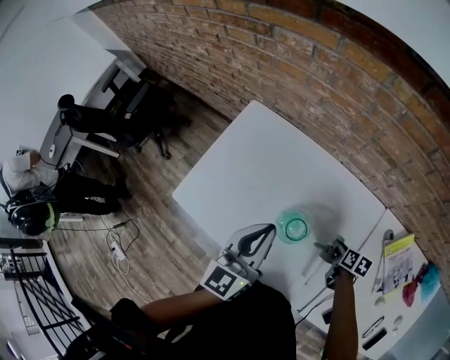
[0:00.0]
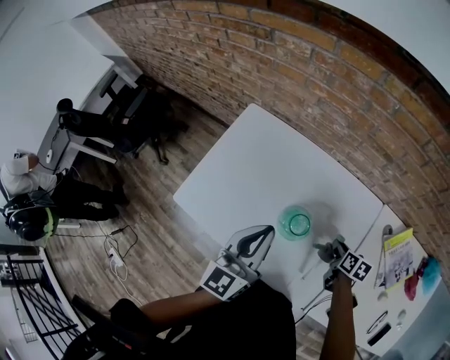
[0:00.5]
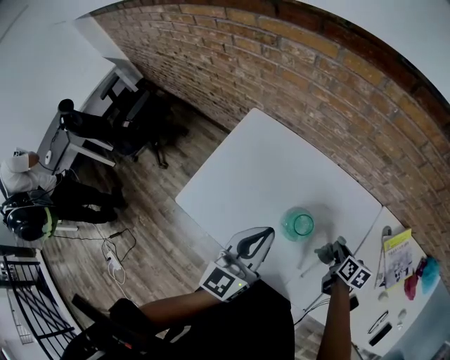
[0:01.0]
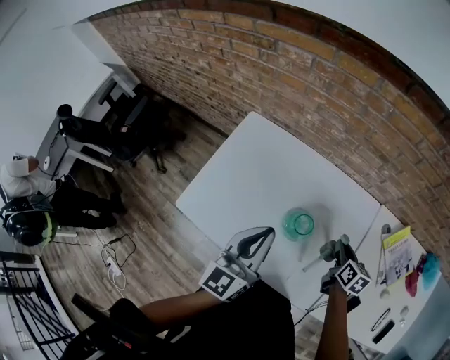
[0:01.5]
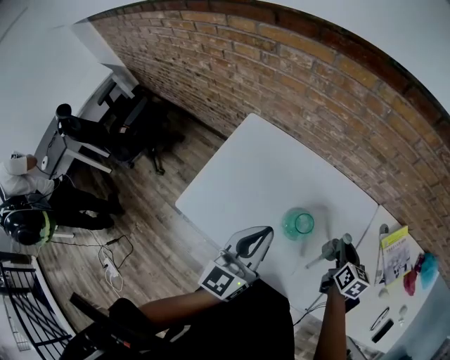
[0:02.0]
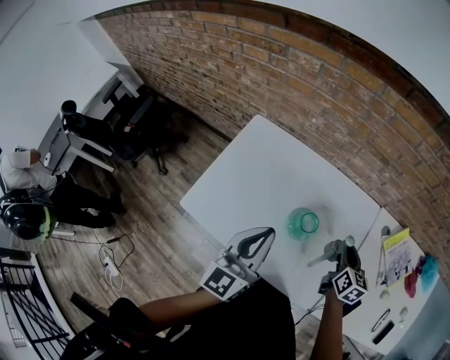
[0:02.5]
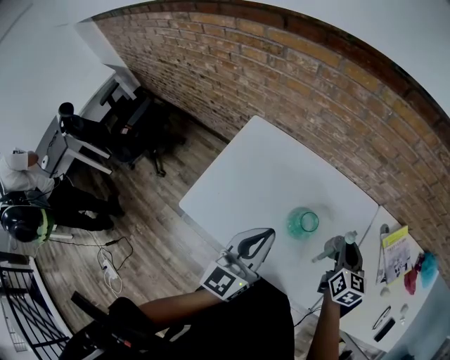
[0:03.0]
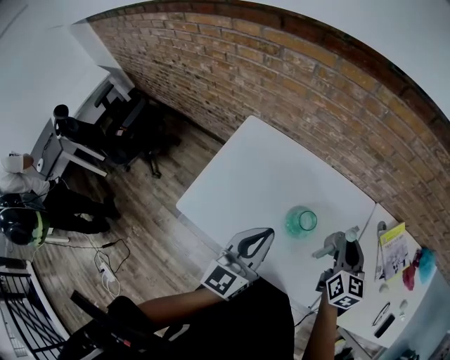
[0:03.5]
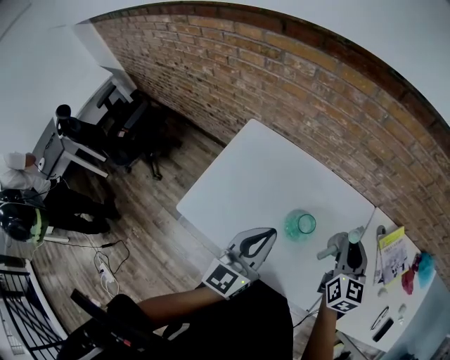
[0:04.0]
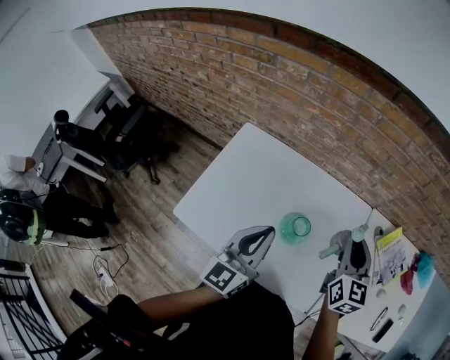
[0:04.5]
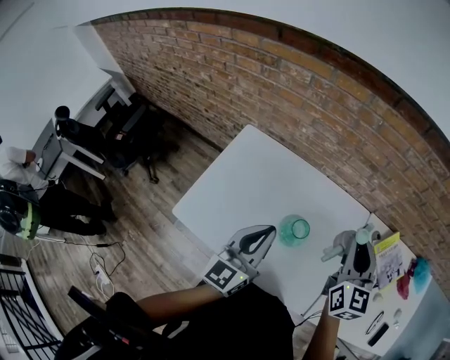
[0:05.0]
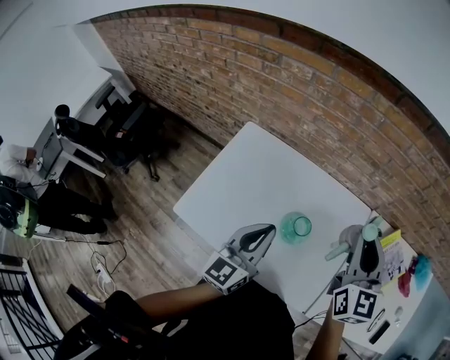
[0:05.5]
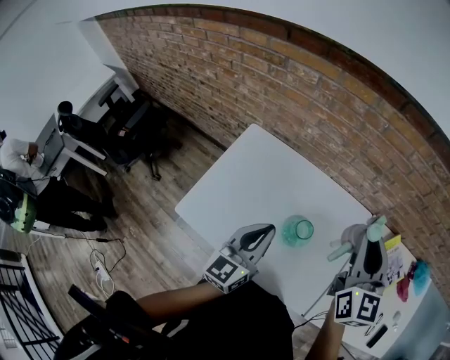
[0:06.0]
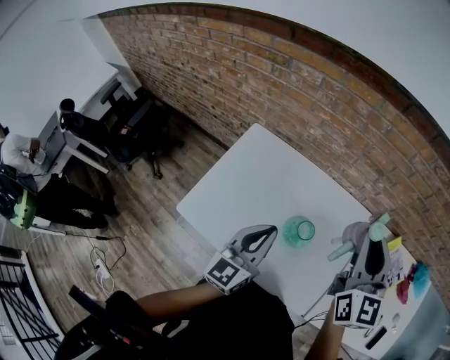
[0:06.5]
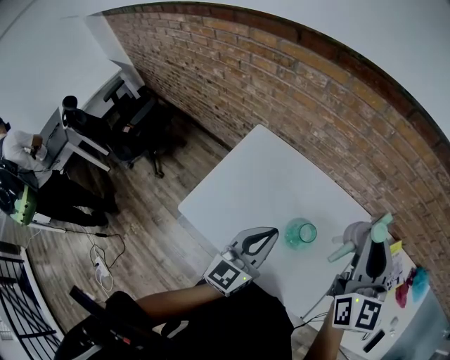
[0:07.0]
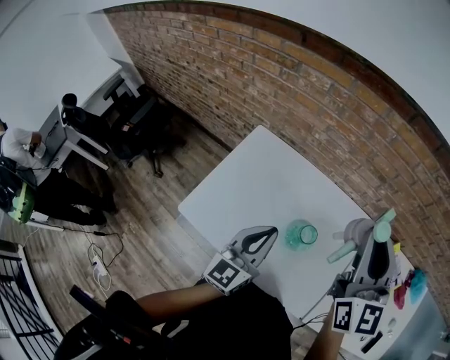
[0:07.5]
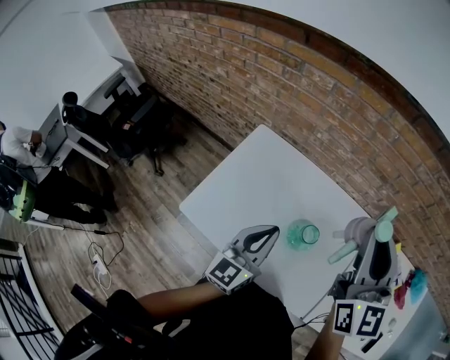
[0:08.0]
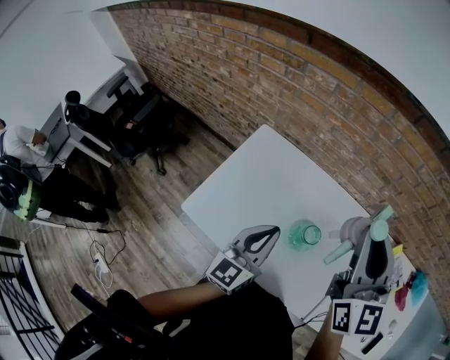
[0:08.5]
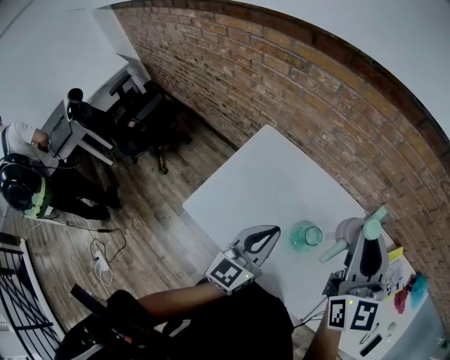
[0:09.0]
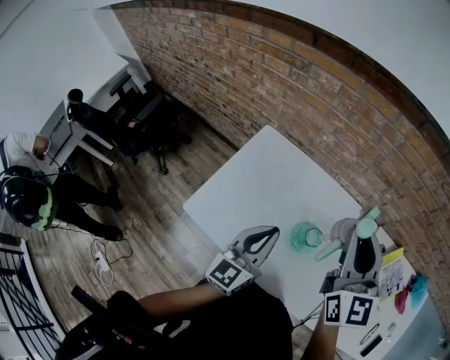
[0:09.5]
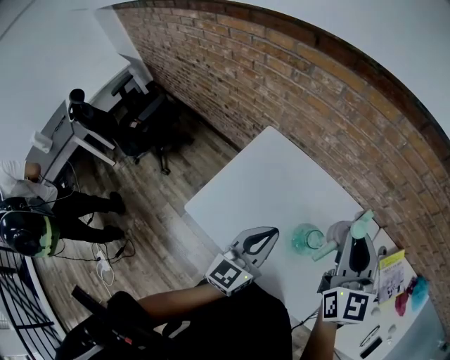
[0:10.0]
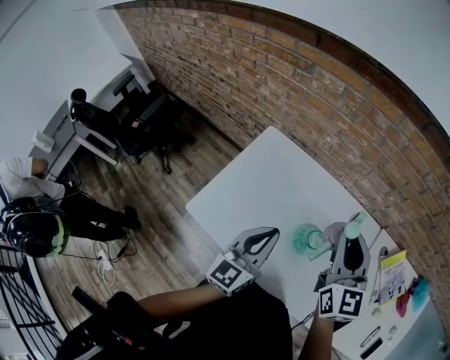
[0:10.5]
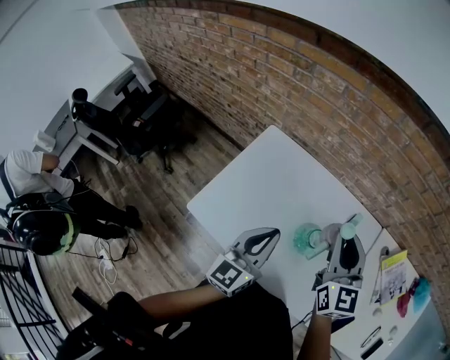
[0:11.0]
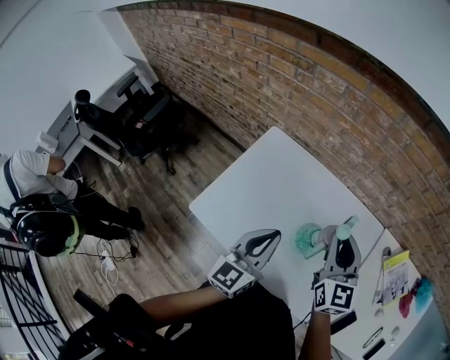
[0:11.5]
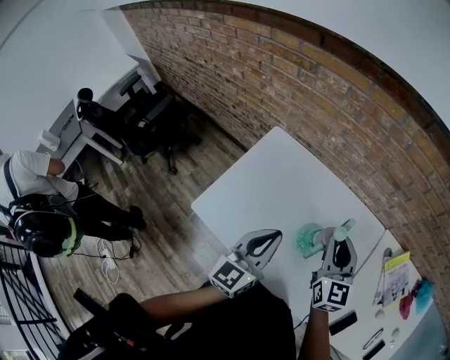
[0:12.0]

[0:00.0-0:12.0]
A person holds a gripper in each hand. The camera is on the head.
0:00.0 to 0:02.0: The right gripper heads upward, covering roughly 15 cm, and rotates about 30 degrees. The left gripper ends up about 5 cm from where it was.
0:02.0 to 0:04.0: The right gripper moves upward, some 15 cm, and changes its angle by roughly 30 degrees.
0:04.0 to 0:06.0: The right gripper heads upward, covering some 15 cm.
0:06.0 to 0:08.0: The right gripper heads upward and to the left, covering roughly 10 cm.
0:08.0 to 0:10.0: The right gripper moves downward, some 10 cm.
0:10.0 to 0:12.0: The right gripper is displaced downward by about 10 cm.

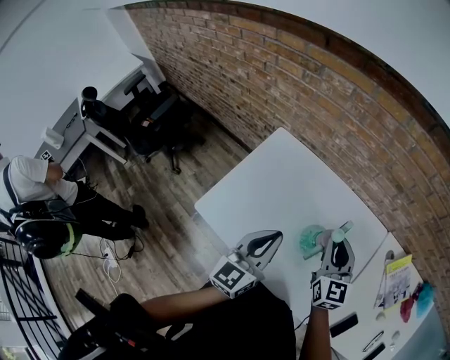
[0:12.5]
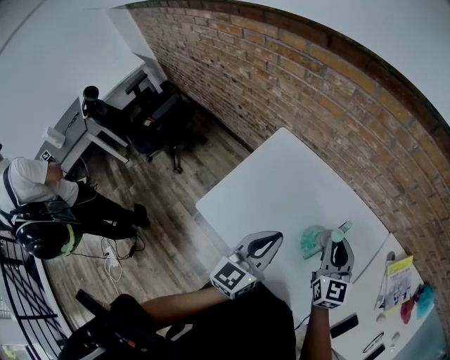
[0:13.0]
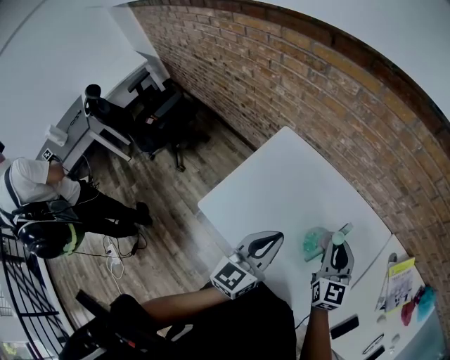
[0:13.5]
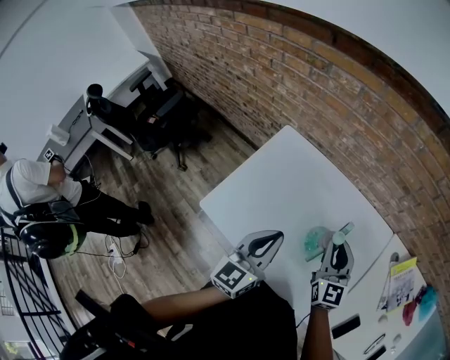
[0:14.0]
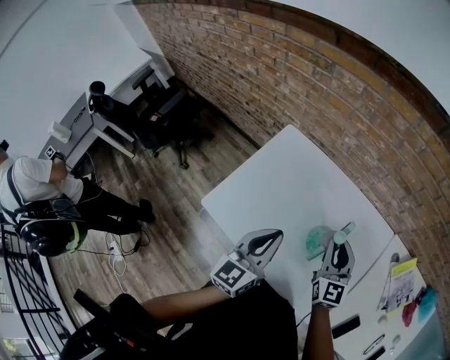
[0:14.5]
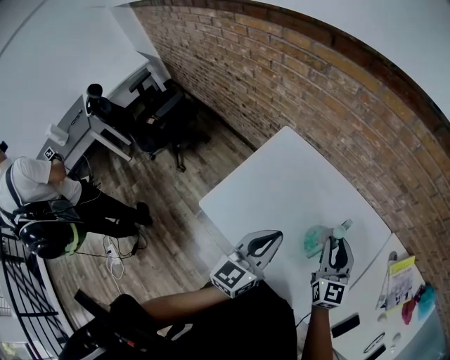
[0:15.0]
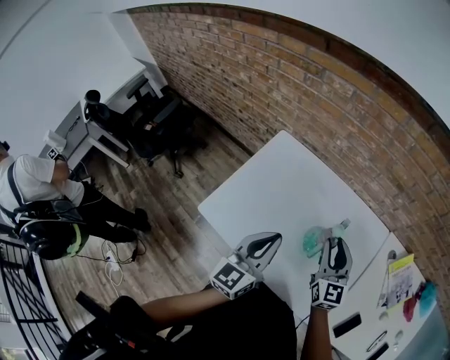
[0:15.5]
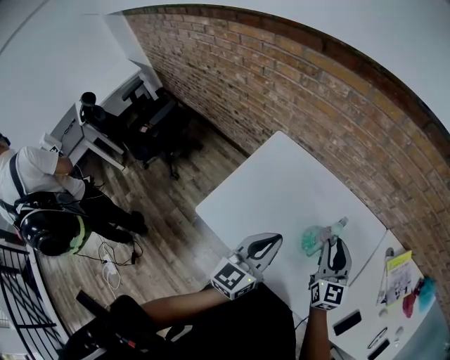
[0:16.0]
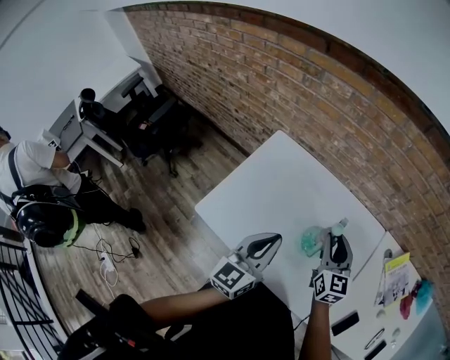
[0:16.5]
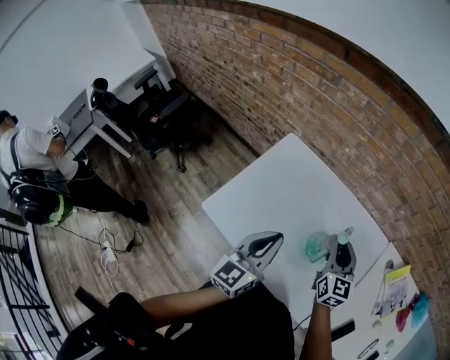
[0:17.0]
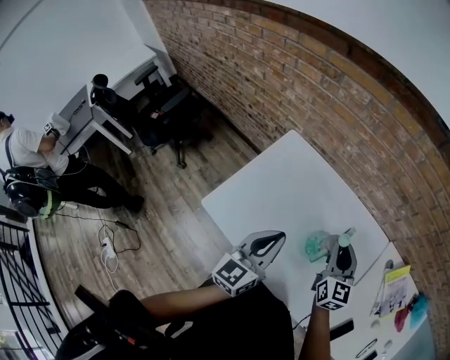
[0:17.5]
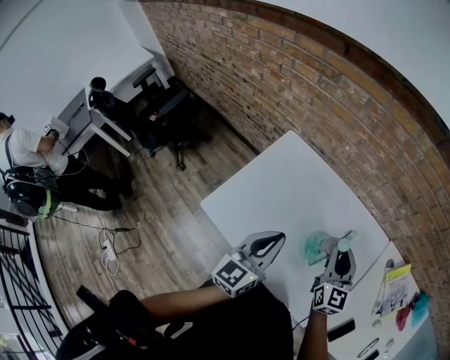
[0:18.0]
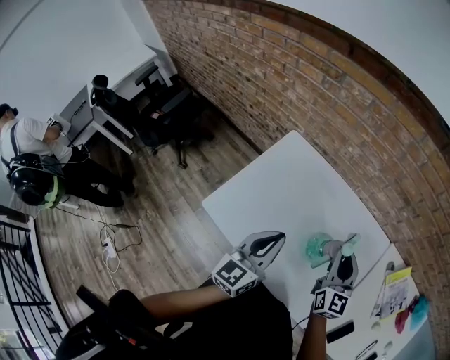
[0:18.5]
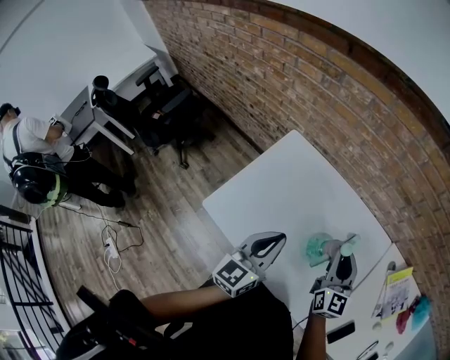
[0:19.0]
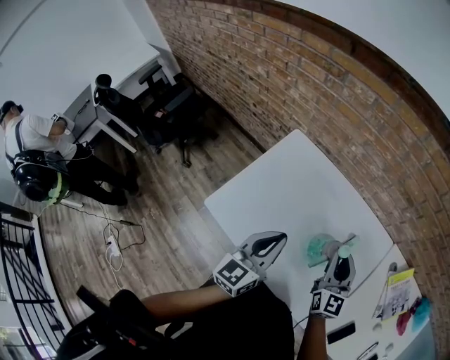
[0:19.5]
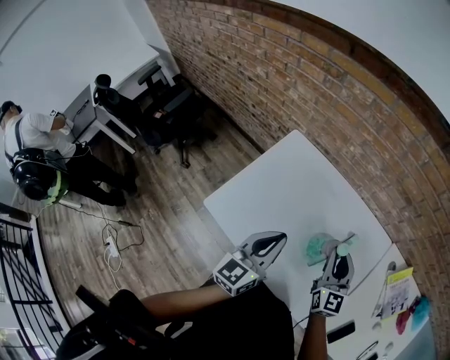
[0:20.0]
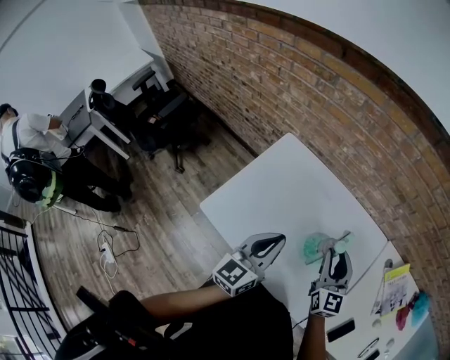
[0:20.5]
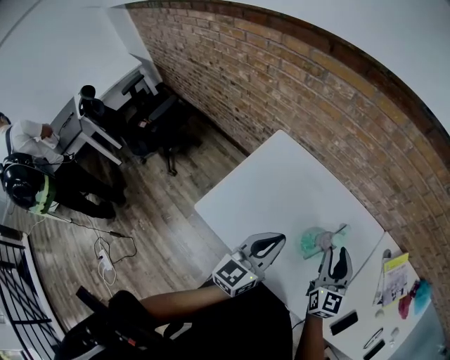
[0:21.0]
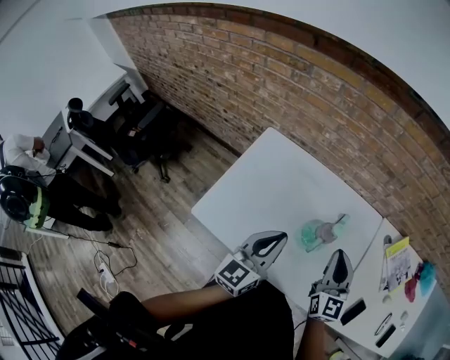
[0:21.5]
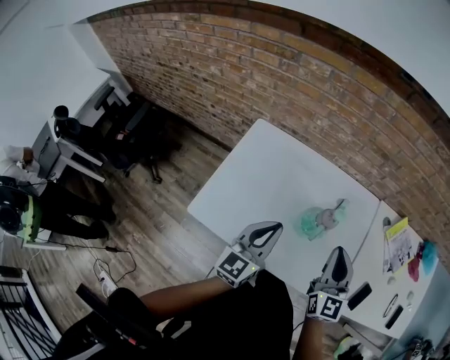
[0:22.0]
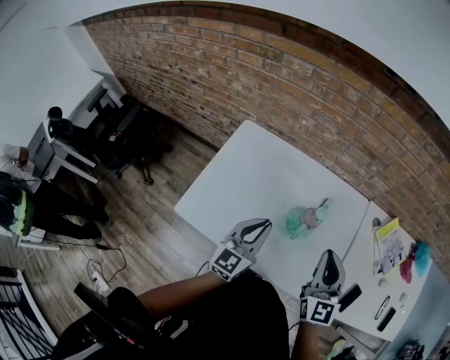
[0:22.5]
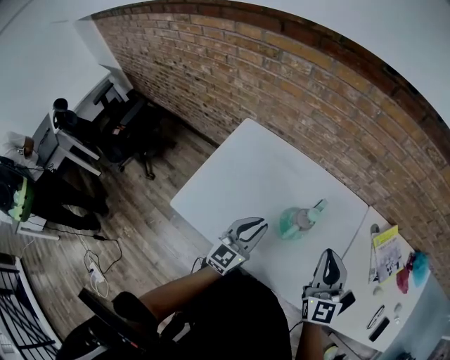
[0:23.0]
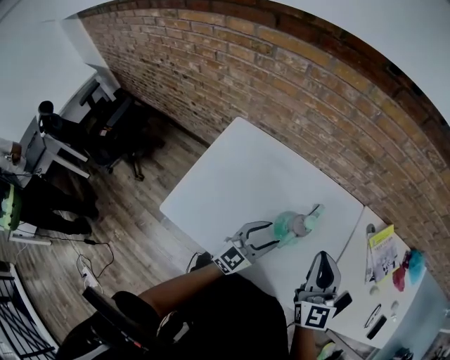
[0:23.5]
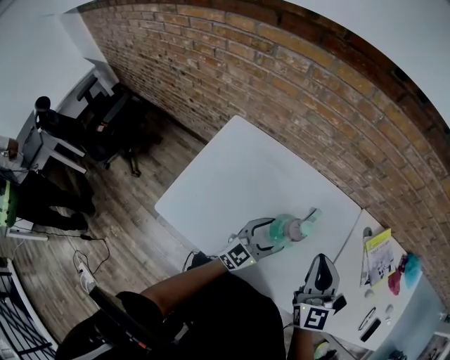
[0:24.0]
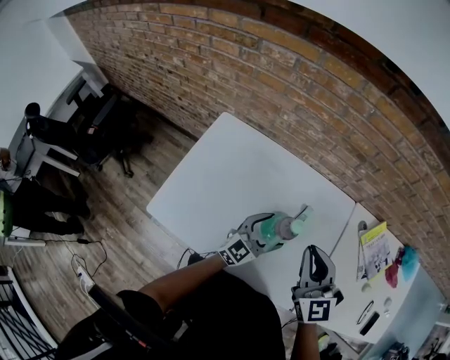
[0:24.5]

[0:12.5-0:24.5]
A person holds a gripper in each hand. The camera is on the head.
0:12.5 to 0:20.5: The grippers stay close to where they were, moving slightly.
0:20.5 to 0:22.5: The left gripper moves roughly 5 cm. Meanwhile the right gripper heads backward and upward, covering roughly 10 cm, and closes.
0:22.5 to 0:24.5: The right gripper shifts roughly 5 cm forward. The left gripper shifts approximately 20 cm downward, to the right and forward, turns by about 20 degrees, and opens.

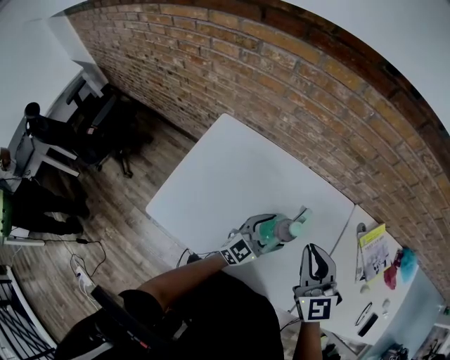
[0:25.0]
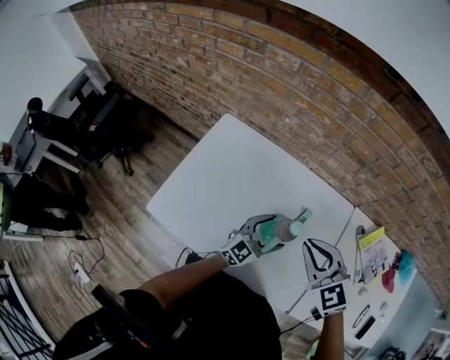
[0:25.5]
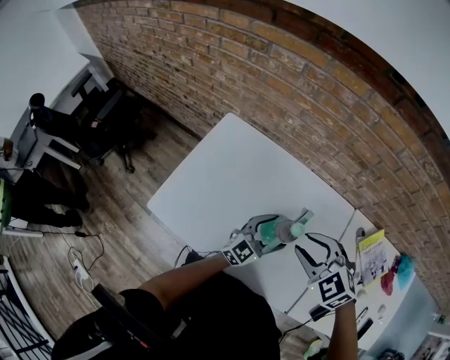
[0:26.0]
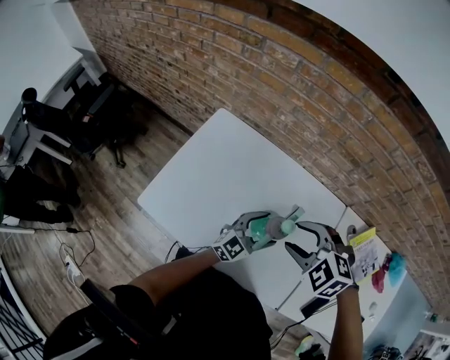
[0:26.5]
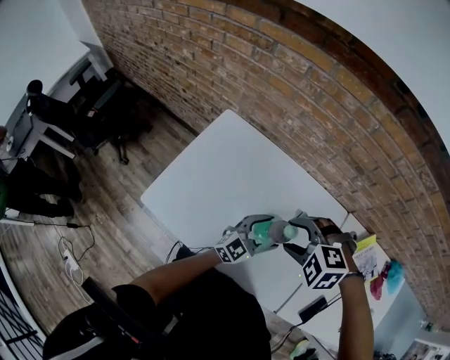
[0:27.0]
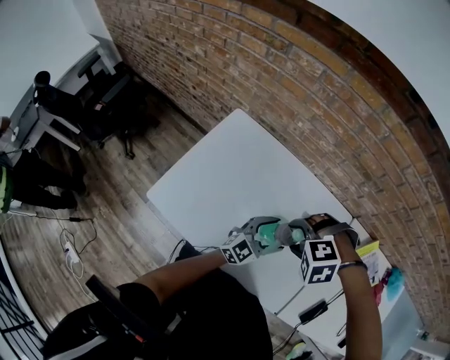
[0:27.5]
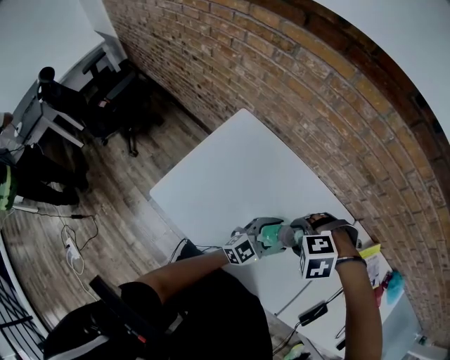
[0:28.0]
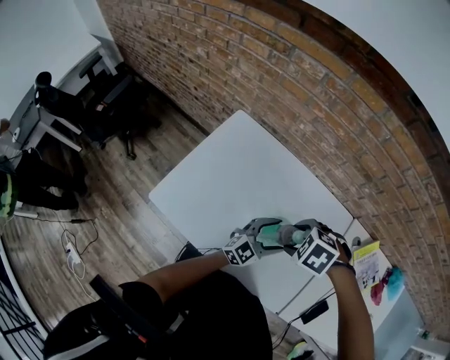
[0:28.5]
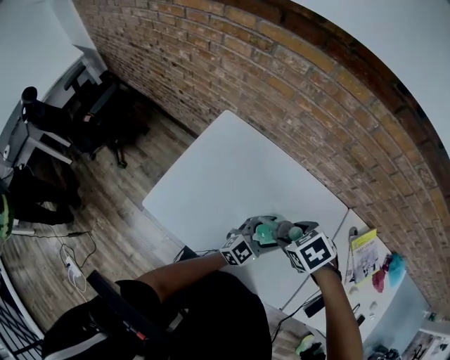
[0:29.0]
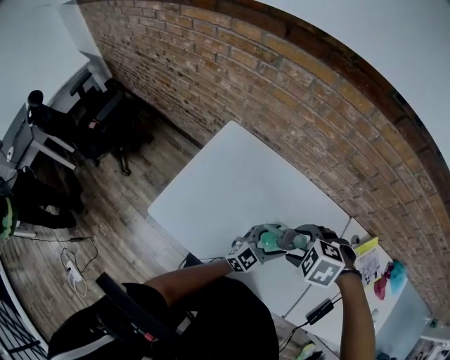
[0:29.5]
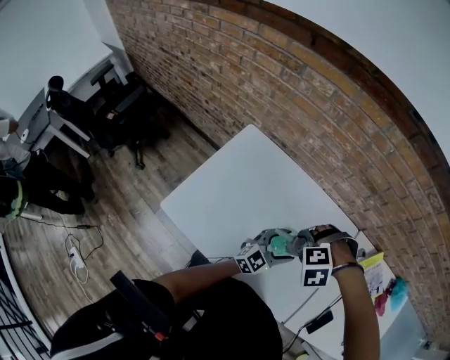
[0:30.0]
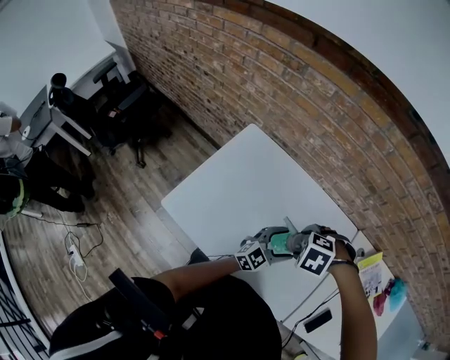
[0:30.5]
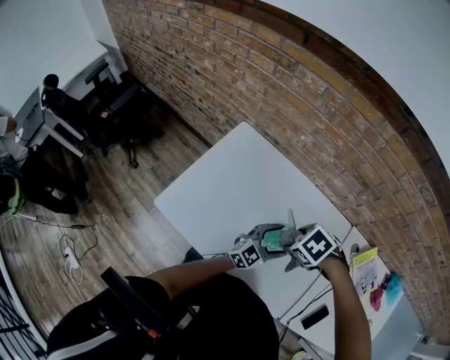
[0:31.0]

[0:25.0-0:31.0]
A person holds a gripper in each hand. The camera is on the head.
0:25.0 to 0:27.0: The right gripper heads downward, covering about 5 cm, points its fingers about 50 degrees further downward, and opens.
0:27.0 to 0:29.0: The right gripper rotates around the line of its fingers by roughly 50 degrees, clockwise from behind.
